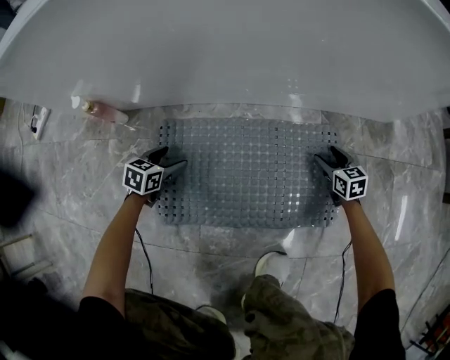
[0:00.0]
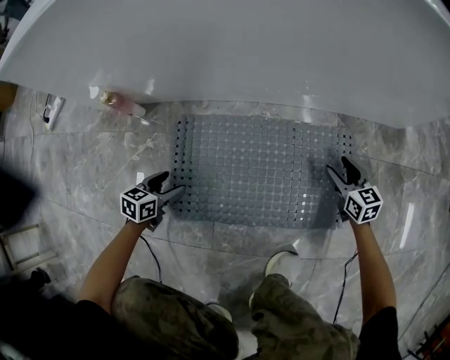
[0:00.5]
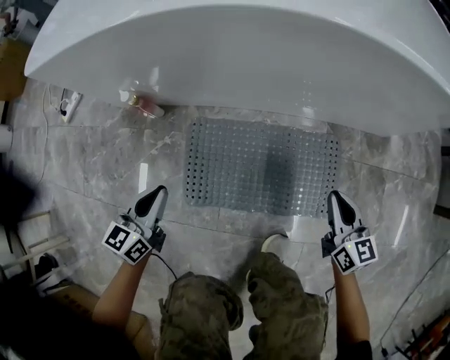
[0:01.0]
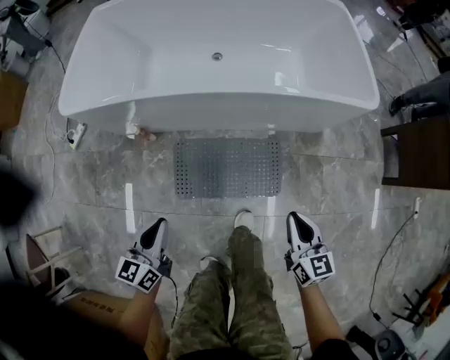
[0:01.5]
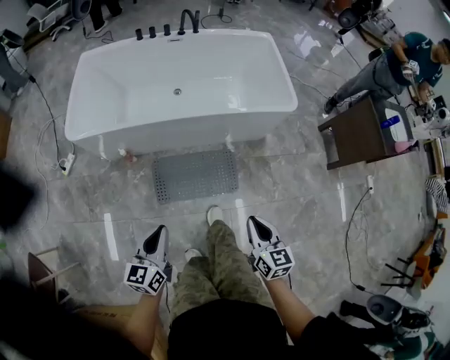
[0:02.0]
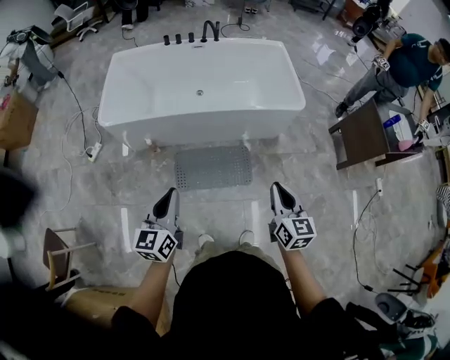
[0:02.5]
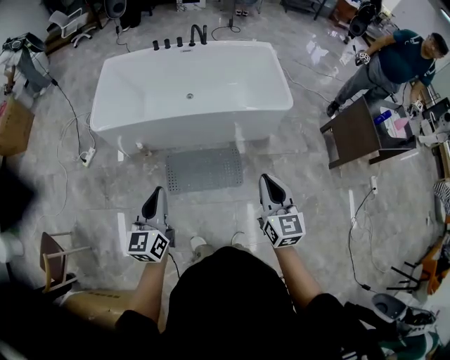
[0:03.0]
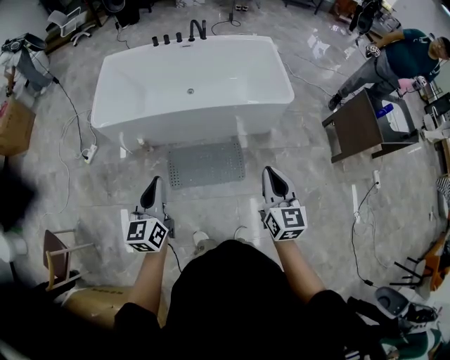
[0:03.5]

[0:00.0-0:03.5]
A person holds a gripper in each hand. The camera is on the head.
0:00.0 to 0:02.0: Both grippers move upward, about 90 cm. The right gripper rotates some 20 degrees, and closes its fingers. Meanwhile the left gripper tips its fingers upward by roughly 30 degrees, and closes.
0:02.0 to 0:03.5: The grippers both shift upward by roughly 20 cm.

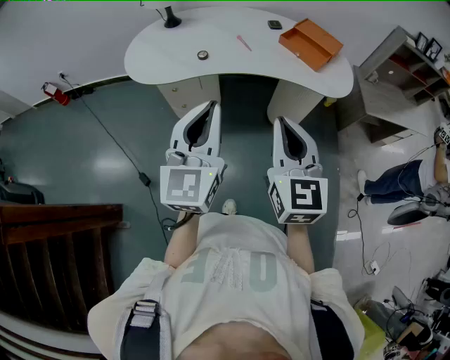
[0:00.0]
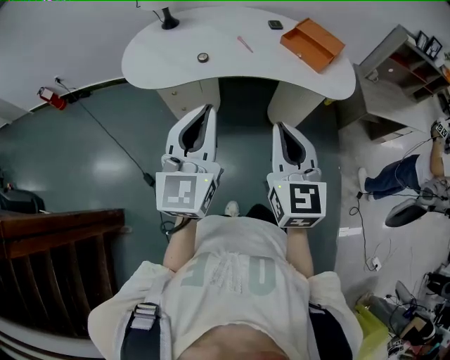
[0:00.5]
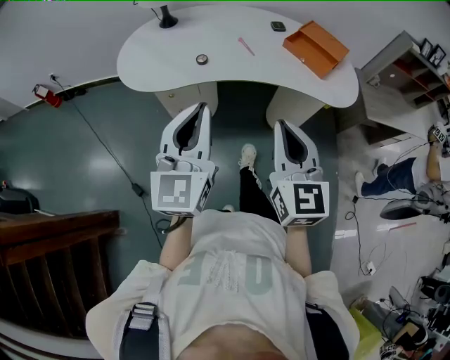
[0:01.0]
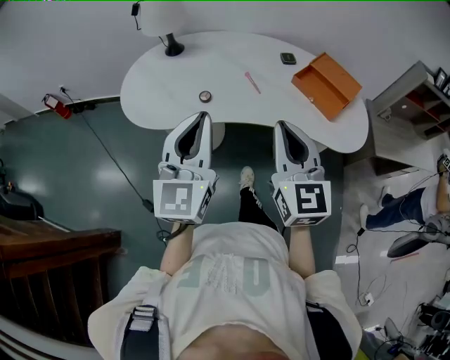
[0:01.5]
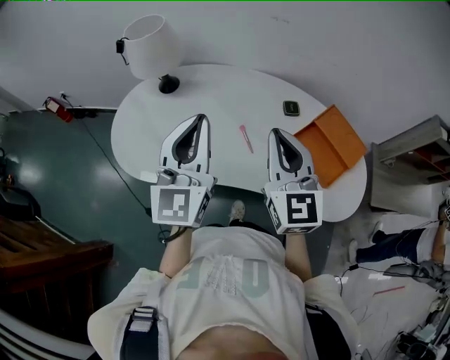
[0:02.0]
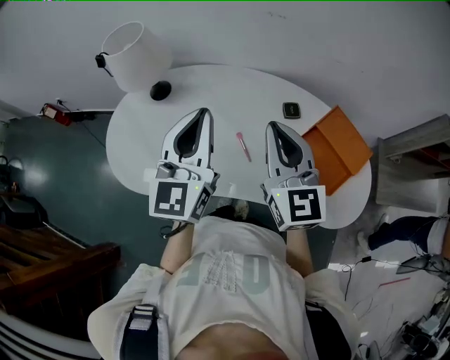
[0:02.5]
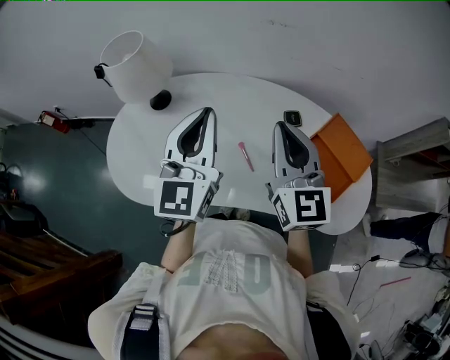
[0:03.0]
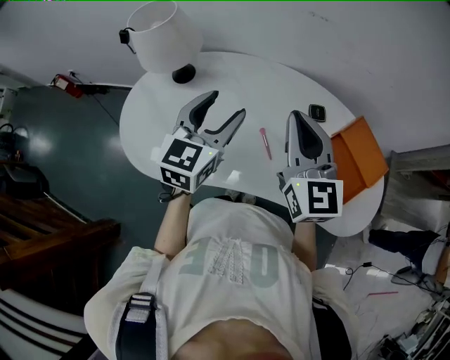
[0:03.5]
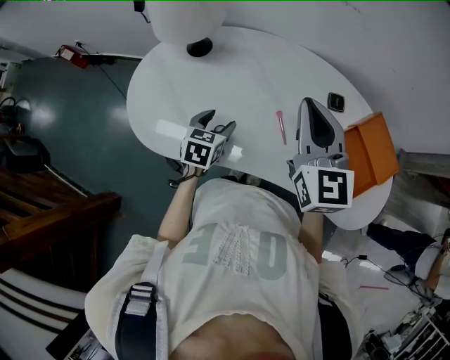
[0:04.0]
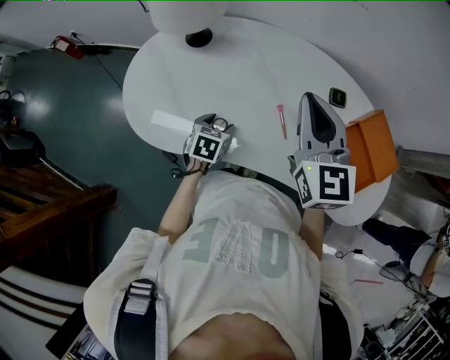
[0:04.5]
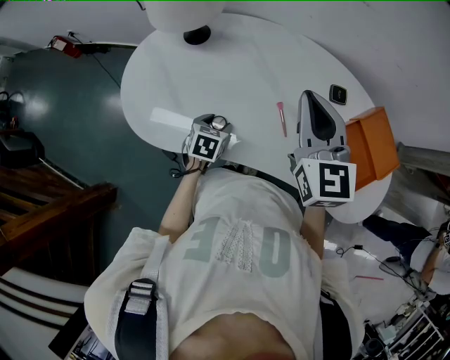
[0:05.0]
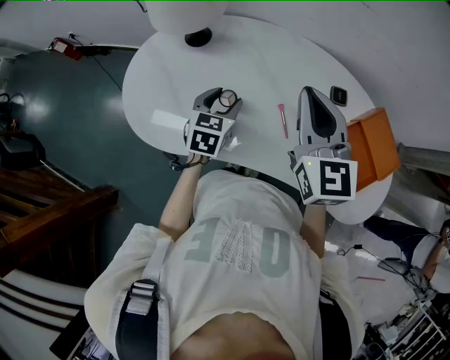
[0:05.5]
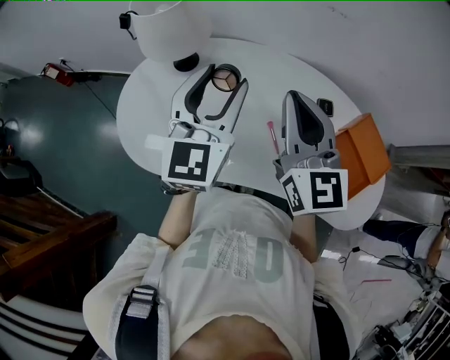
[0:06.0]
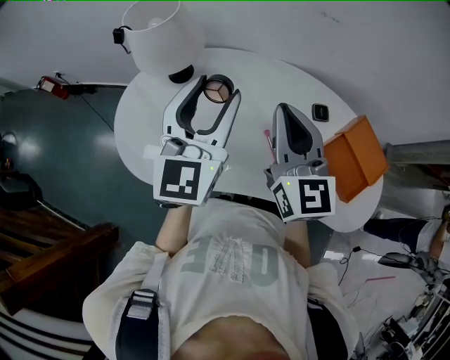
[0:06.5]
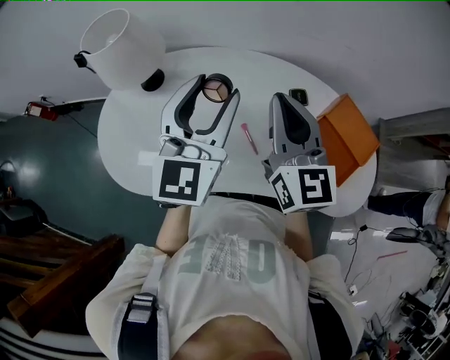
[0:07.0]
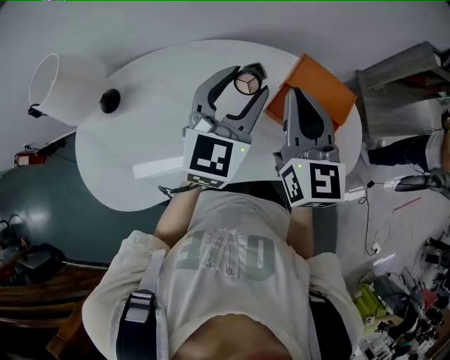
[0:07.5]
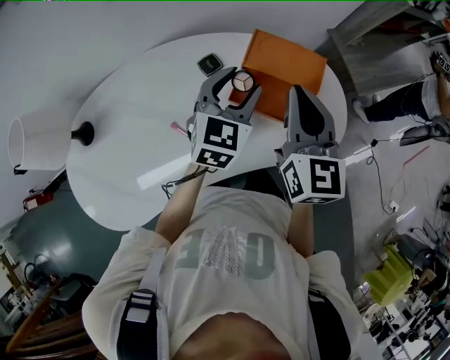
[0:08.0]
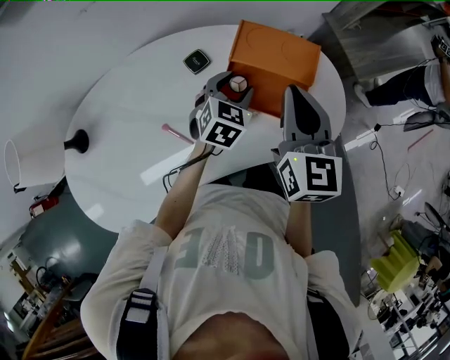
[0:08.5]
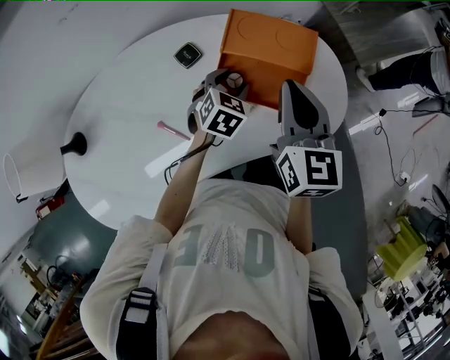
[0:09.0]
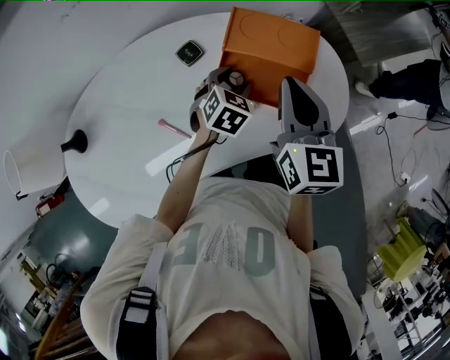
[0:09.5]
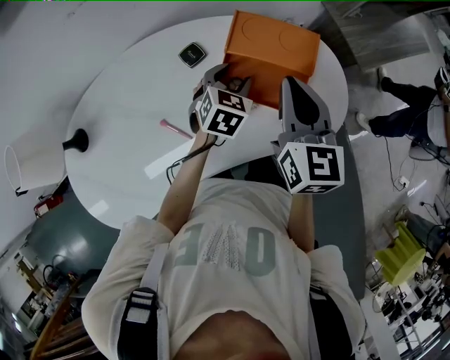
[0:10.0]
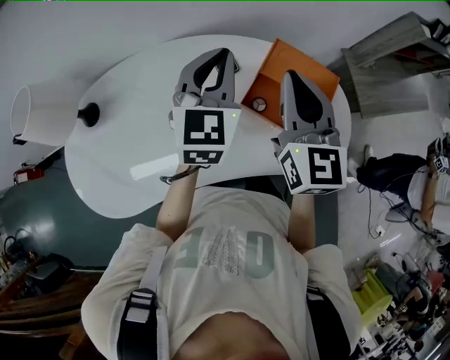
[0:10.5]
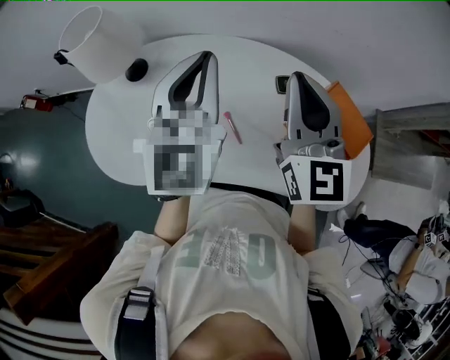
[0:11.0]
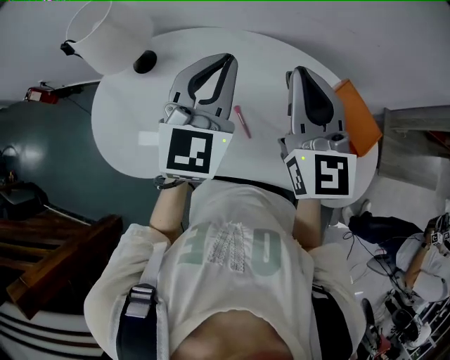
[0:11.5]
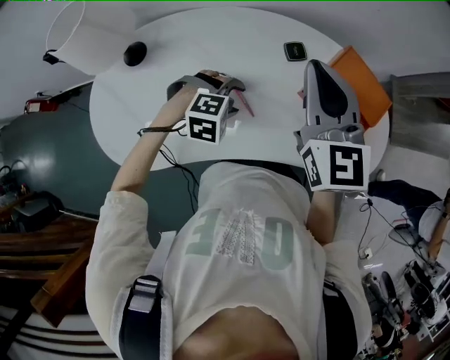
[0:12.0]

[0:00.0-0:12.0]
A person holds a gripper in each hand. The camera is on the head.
0:00.0 to 0:02.0: The two grippers travel together, forward, some 40 cm.
0:02.0 to 0:04.0: The right gripper moves forward, about 10 cm, while the left gripper goes roughly 30 cm downward, points its fingers approximately 50 degrees further downward, and opens up.
0:04.0 to 0:06.0: The right gripper shifts by roughly 5 cm, while the left gripper heads upward, covering approximately 25 cm, and points its fingers about 40 degrees further upward.
0:06.0 to 0:08.0: The right gripper ends up some 35 cm from where it was, and rotates some 50 degrees; the left gripper moves roughly 40 cm, and changes its angle by about 50 degrees.
0:08.0 to 0:10.0: The right gripper heads downward, covering roughly 5 cm. The left gripper goes about 15 cm downward, and rotates some 20 degrees.
0:10.0 to 0:12.0: The left gripper moves approximately 30 cm upward and comes back, twists about 40 degrees clockwise, seen from behind, and closes, then reopens. Meanwhile the right gripper shifts by some 25 cm, and swivels roughly 30 degrees.

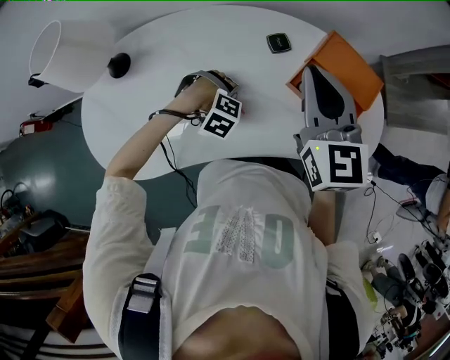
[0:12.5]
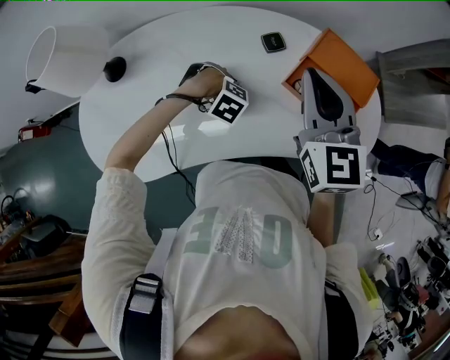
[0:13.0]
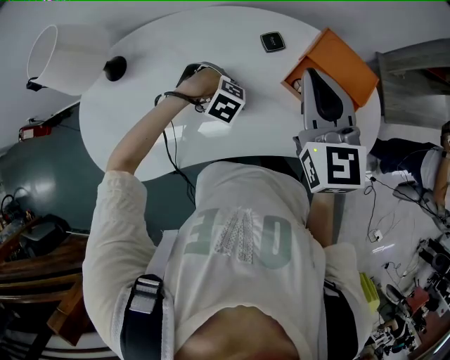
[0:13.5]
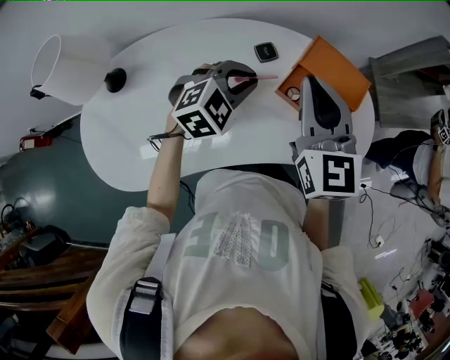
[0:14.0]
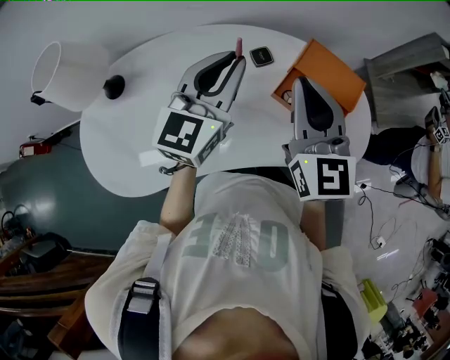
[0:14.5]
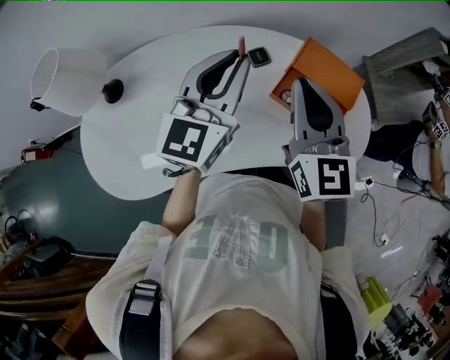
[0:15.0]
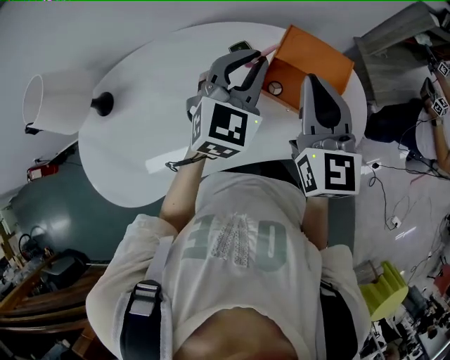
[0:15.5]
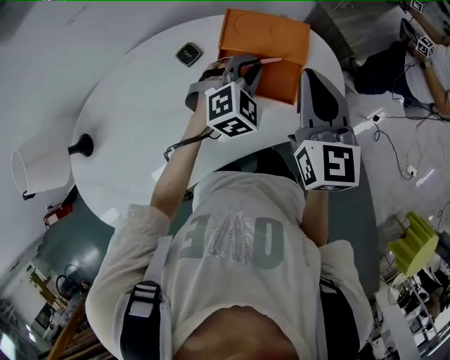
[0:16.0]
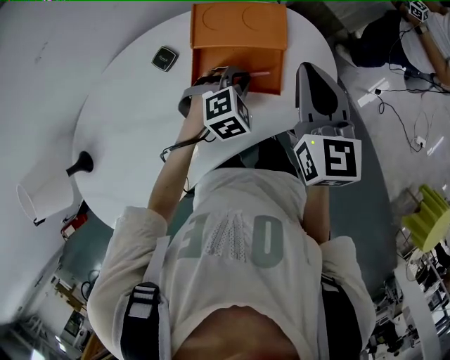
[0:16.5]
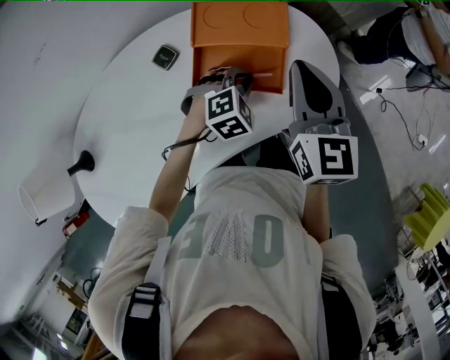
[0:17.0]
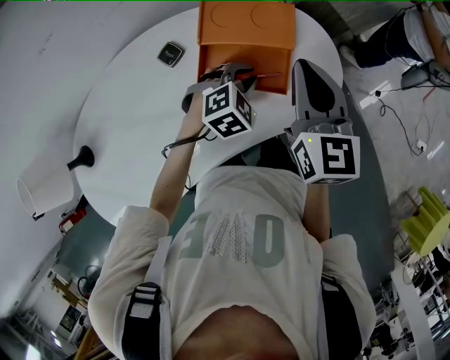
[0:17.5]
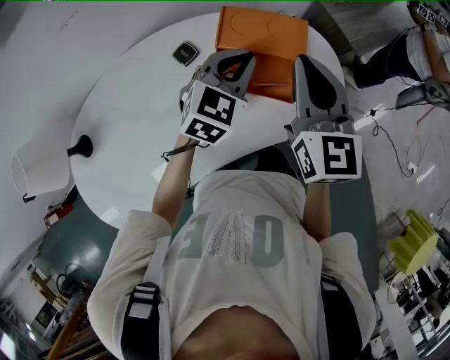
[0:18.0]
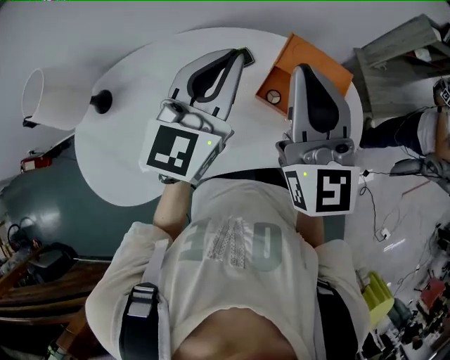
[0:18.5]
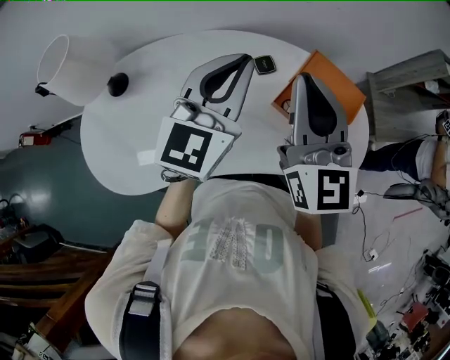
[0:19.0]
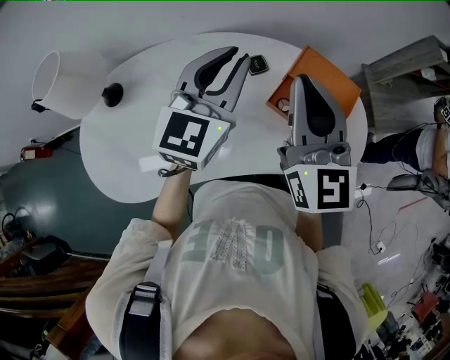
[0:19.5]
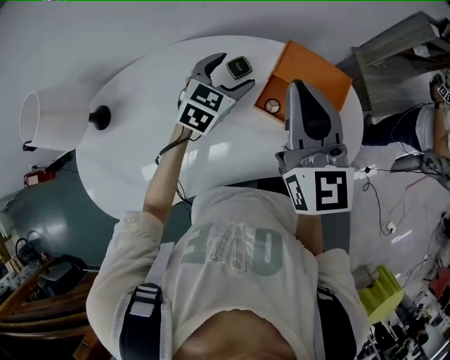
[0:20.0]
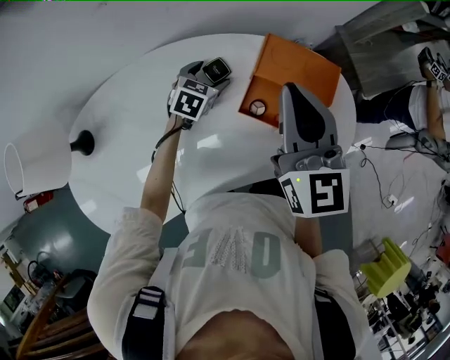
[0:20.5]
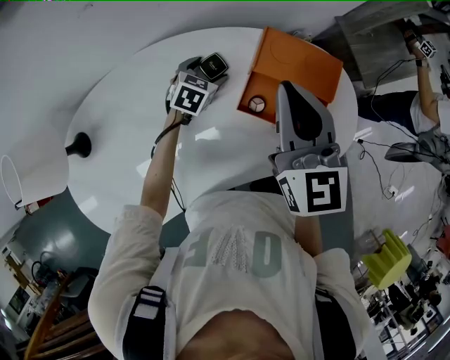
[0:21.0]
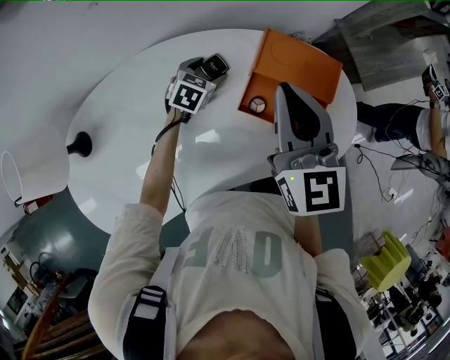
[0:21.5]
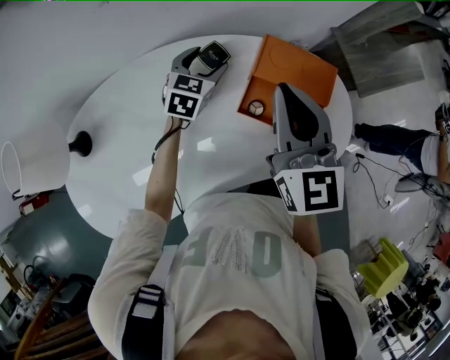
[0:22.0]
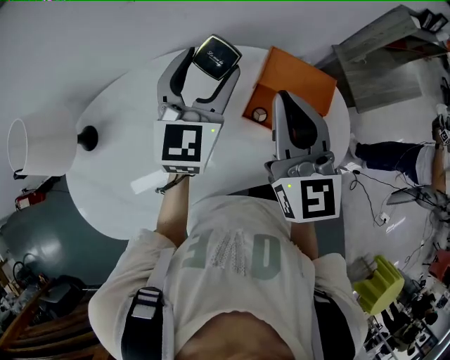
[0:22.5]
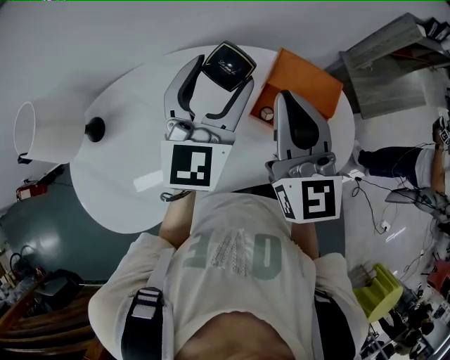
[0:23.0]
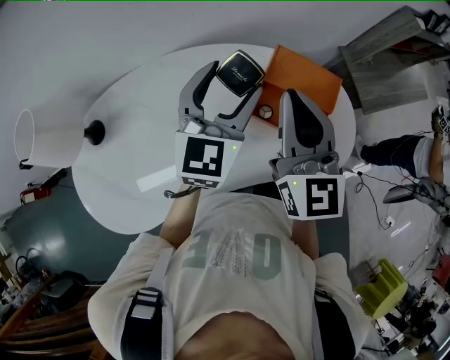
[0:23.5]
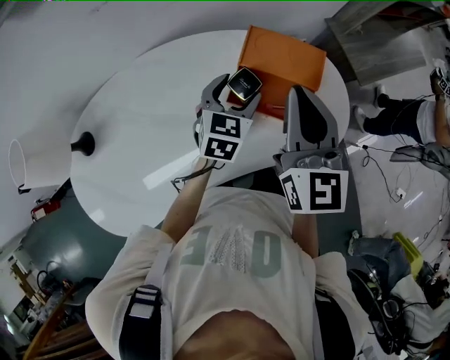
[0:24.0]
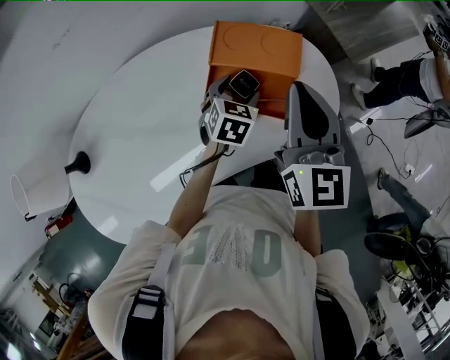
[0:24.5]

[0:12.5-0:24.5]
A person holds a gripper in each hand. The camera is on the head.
0:12.5 to 0:14.5: The left gripper shifts about 30 cm upward, tilts its fingers some 80 degrees upward, and closes.
0:14.5 to 0:16.5: The left gripper moves downward, some 25 cm, and tilts its fingers roughly 60 degrees downward, while the right gripper moves some 25 cm, and turns by about 40 degrees.
0:16.5 to 0:18.5: The right gripper changes place by about 25 cm, and changes its angle by some 30 degrees; the left gripper shifts roughly 30 cm upward, and tilts its fingers approximately 60 degrees upward.
0:18.5 to 0:20.5: The left gripper goes some 35 cm downward and forward, tips its fingers downward by some 40 degrees, and opens its fingers; the right gripper travels downward and forward by roughly 10 cm.
0:20.5 to 0:22.5: The right gripper changes place by roughly 5 cm; the left gripper is displaced upward by roughly 25 cm, and tips its fingers upward by roughly 40 degrees.
0:22.5 to 0:24.5: The left gripper travels downward and to the right by about 30 cm, and points its fingers roughly 40 degrees further downward. Meanwhile the right gripper shifts some 15 cm to the right, and swivels some 20 degrees.
